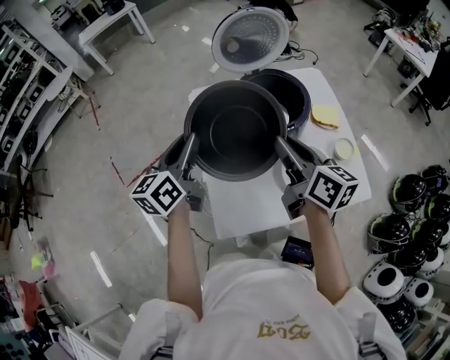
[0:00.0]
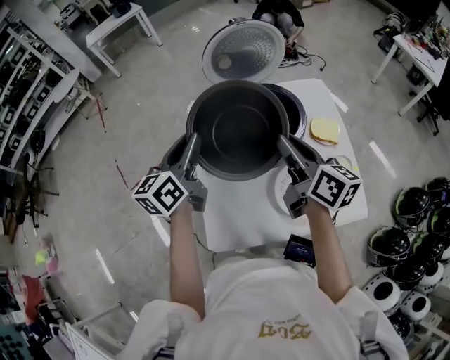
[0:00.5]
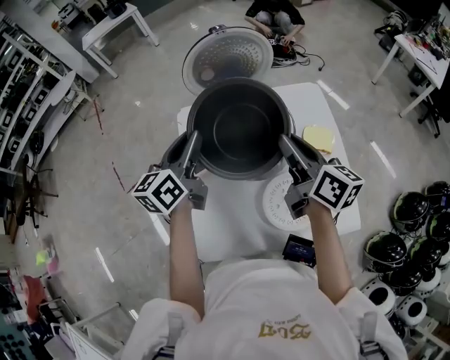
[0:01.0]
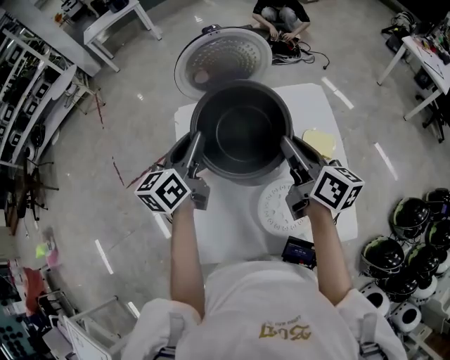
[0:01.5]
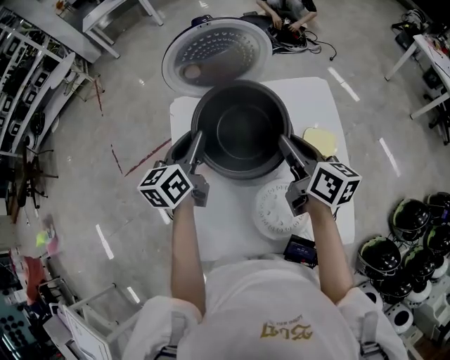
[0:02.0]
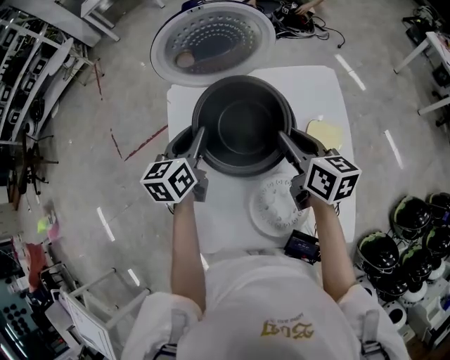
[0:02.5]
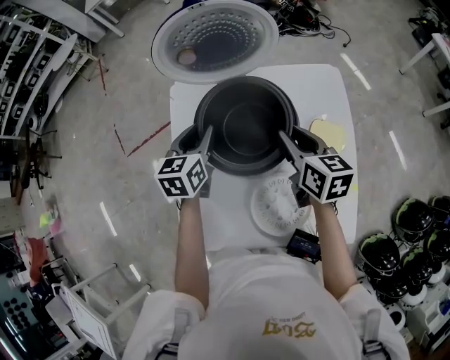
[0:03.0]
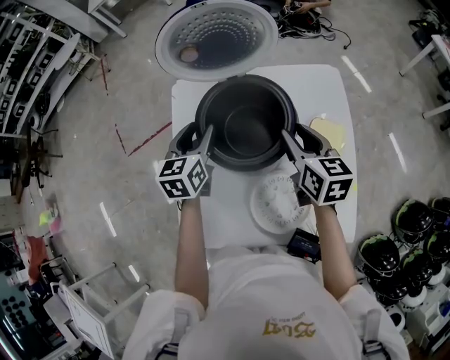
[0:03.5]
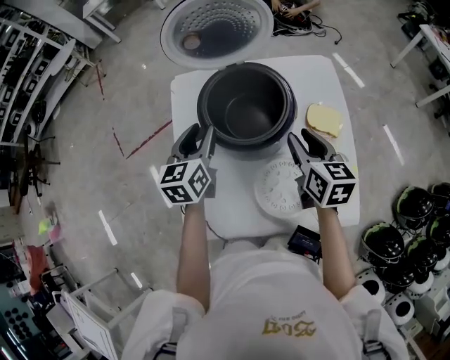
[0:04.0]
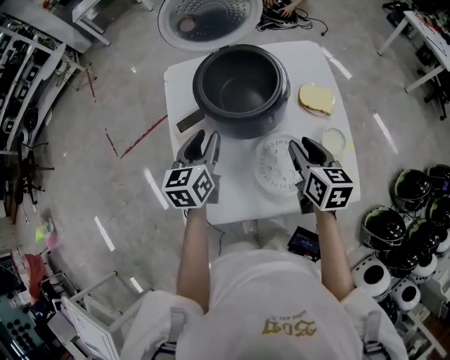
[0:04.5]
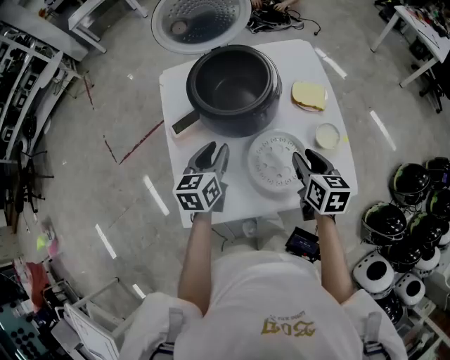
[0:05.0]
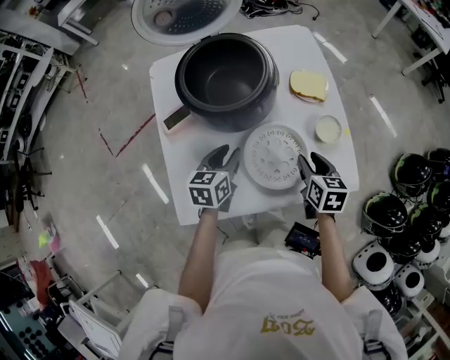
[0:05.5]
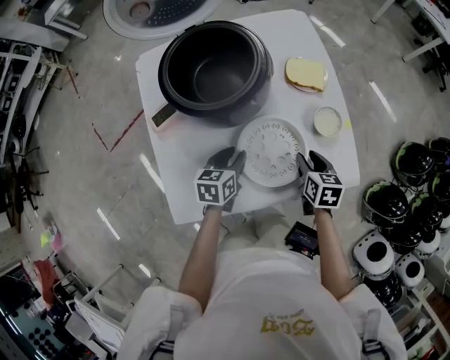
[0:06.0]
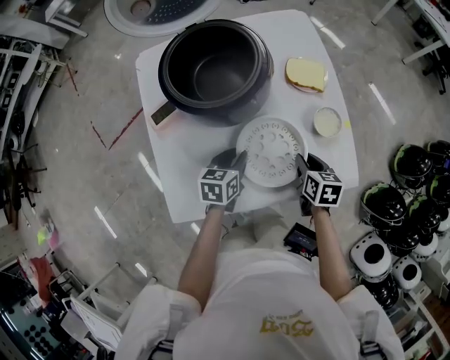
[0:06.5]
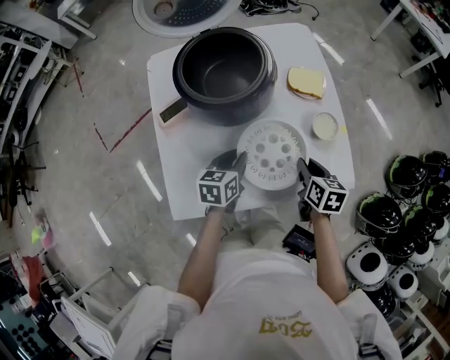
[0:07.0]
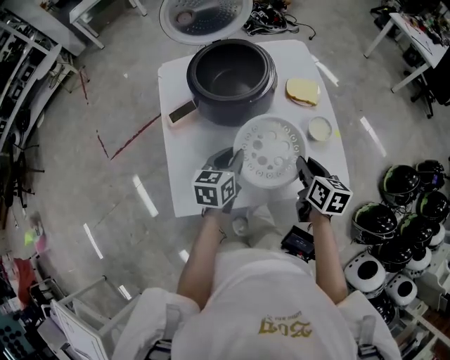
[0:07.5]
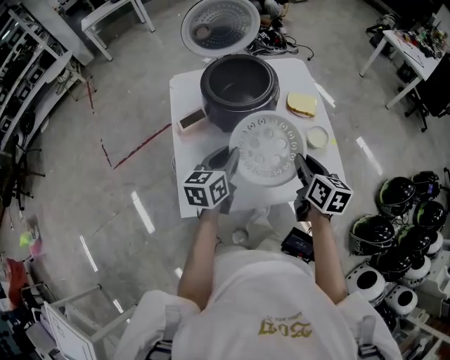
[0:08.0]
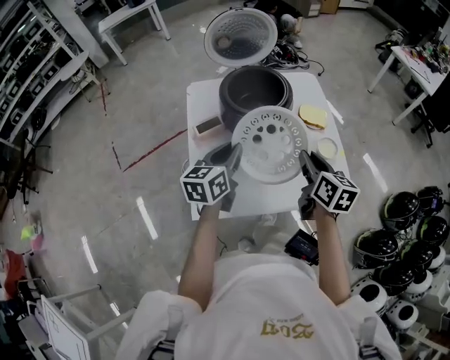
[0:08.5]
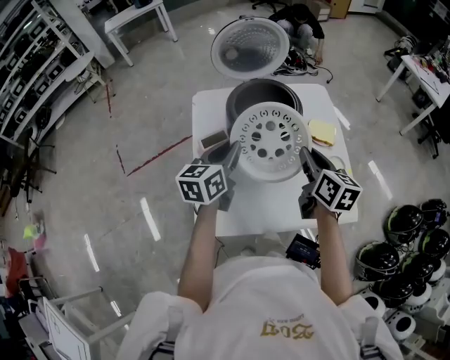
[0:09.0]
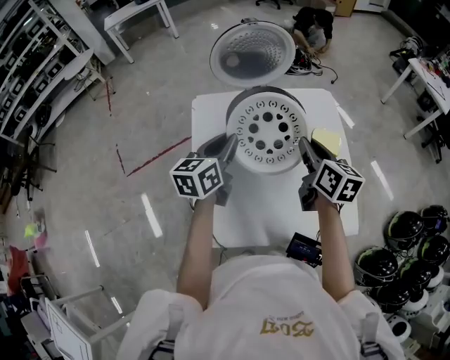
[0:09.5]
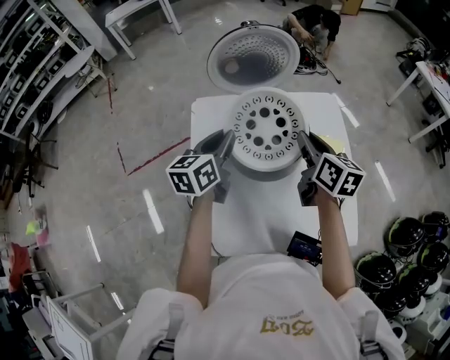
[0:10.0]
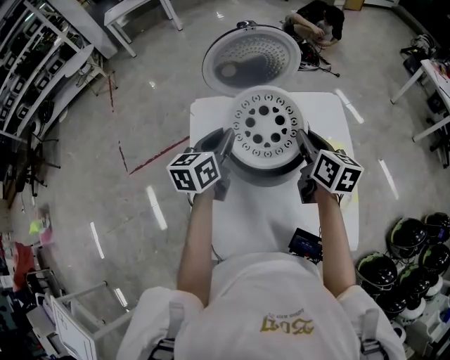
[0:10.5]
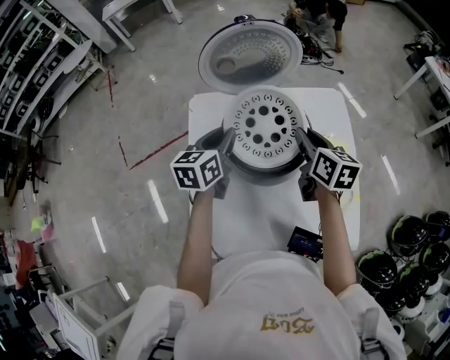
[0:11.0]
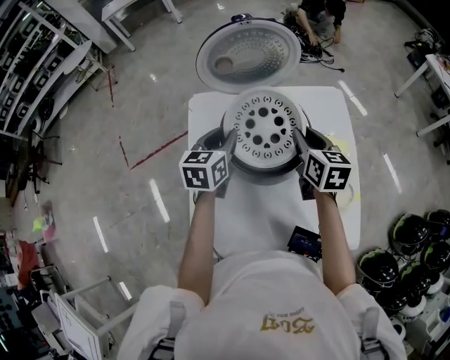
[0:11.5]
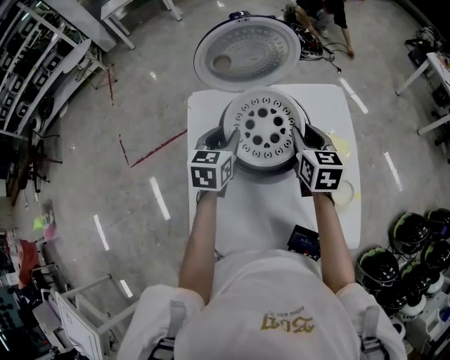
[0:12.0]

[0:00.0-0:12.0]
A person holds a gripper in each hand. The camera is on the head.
0:00.0 to 0:02.0: The right gripper moves forward and to the right, approximately 20 cm. The left gripper goes about 20 cm forward, to the right and downward.
0:02.0 to 0:04.0: The right gripper shifts about 10 cm backward and downward, and swivels about 20 degrees. Meanwhile the left gripper moves backward, about 5 cm.
0:04.0 to 0:06.0: Both grippers move downward, backward and to the right, approximately 25 cm. The left gripper swivels approximately 30 degrees. The right gripper rotates roughly 30 degrees.
0:06.0 to 0:08.0: Both grippers travel together upward, approximately 20 cm. The left gripper turns by some 20 degrees. Meanwhile the right gripper turns by some 20 degrees, and closes its fingers.
0:08.0 to 0:10.0: The left gripper heads forward and to the left, covering roughly 20 cm. Meanwhile the right gripper goes roughly 20 cm forward.
0:10.0 to 0:12.0: The right gripper shifts some 10 cm downward and forward, and swivels roughly 20 degrees. Meanwhile the left gripper moves downward, about 5 cm, and swivels some 20 degrees.

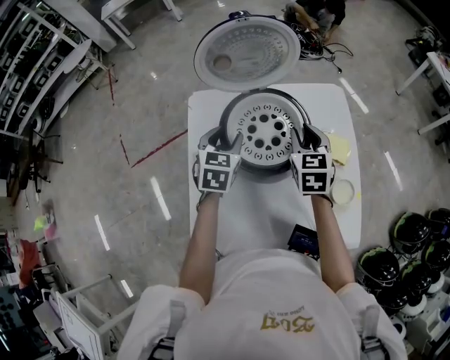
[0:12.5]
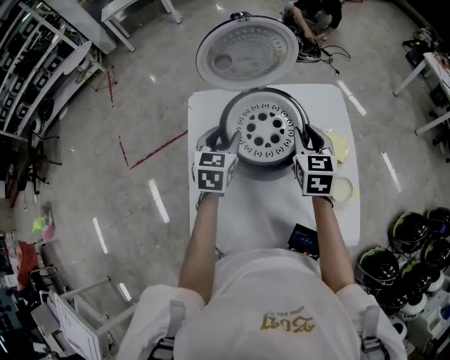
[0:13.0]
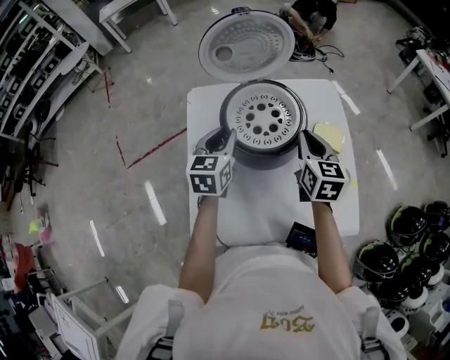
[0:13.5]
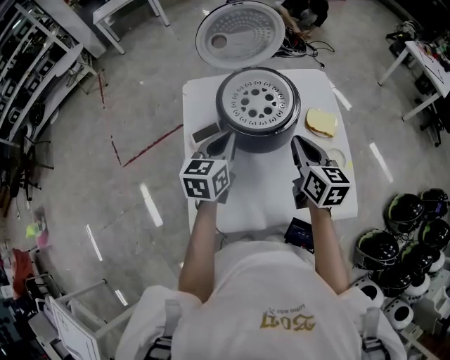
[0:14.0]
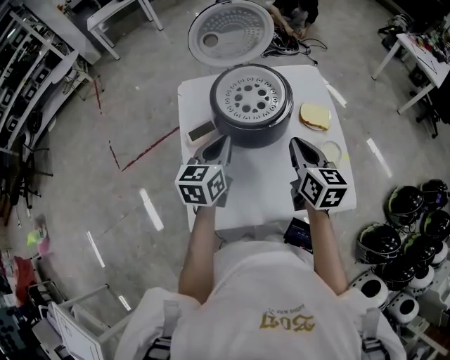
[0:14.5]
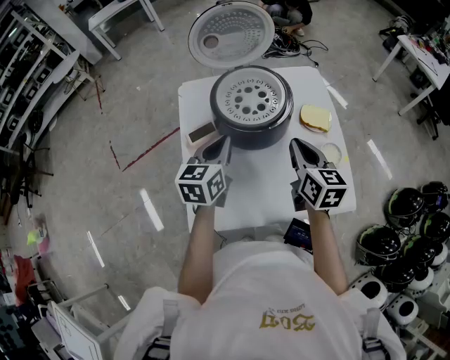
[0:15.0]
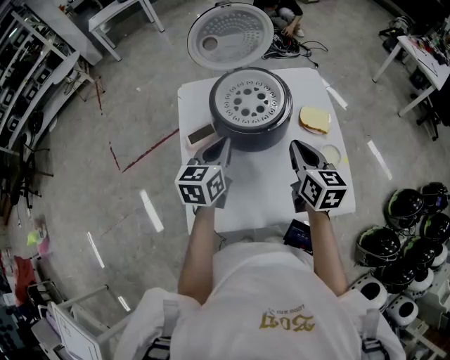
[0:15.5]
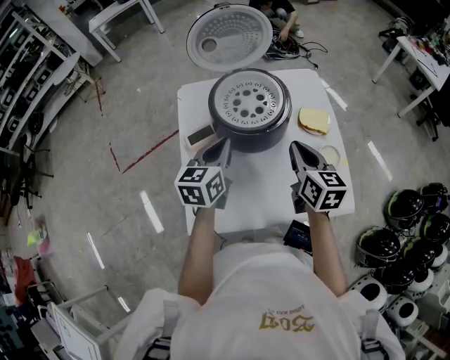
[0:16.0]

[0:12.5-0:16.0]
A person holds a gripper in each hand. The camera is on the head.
0:12.5 to 0:14.5: Both grippers travel together backward, about 15 cm. The left gripper turns by approximately 20 degrees, and closes its fingers, while the right gripper turns by about 30 degrees, and closes.
0:14.5 to 0:16.0: Both grippers stay about where they are.

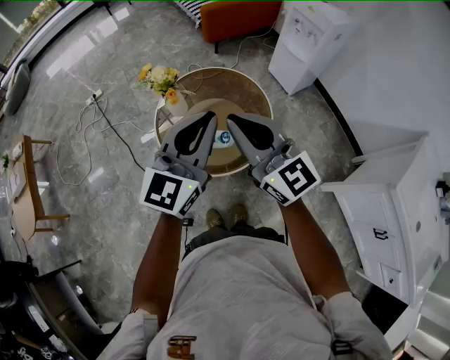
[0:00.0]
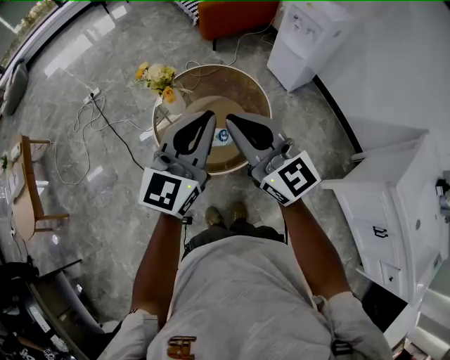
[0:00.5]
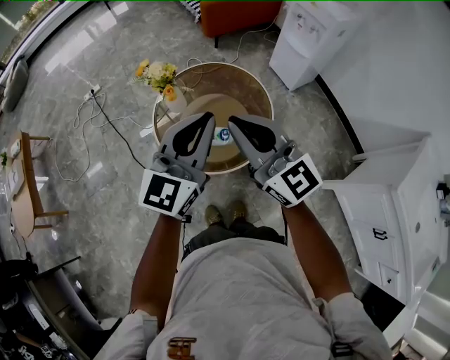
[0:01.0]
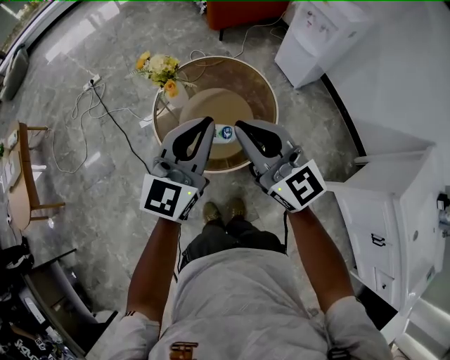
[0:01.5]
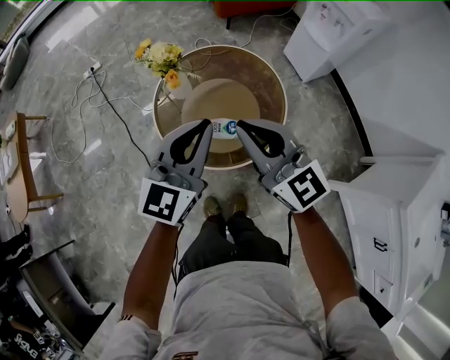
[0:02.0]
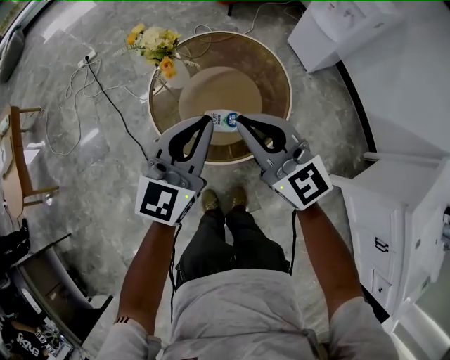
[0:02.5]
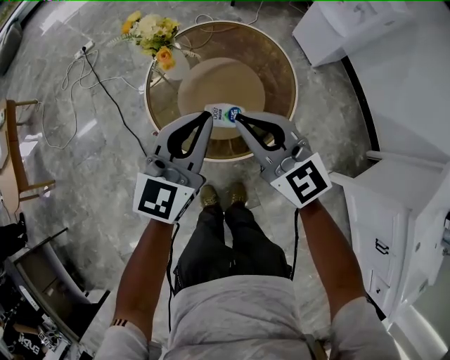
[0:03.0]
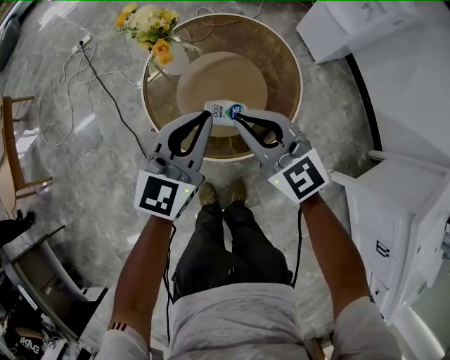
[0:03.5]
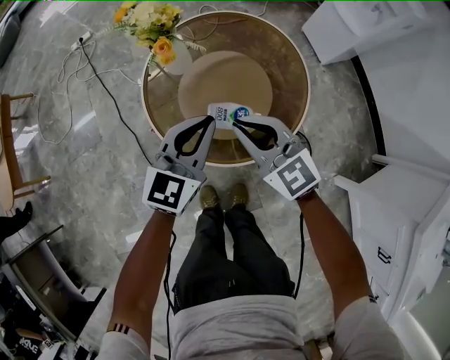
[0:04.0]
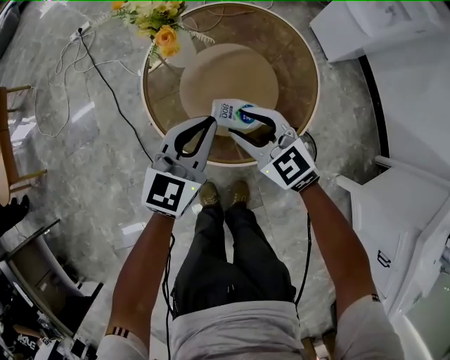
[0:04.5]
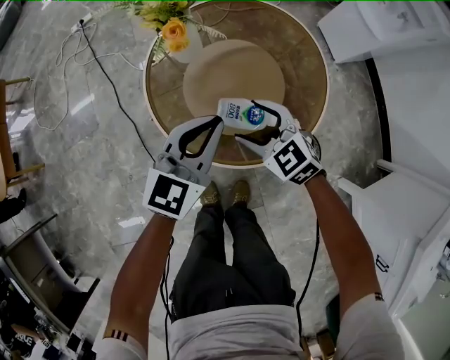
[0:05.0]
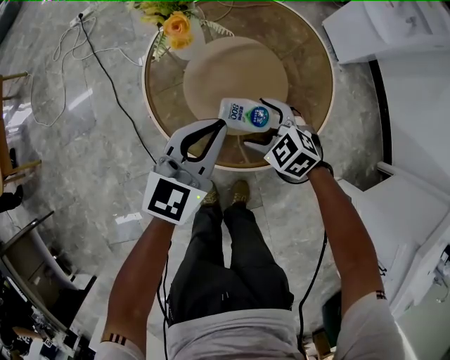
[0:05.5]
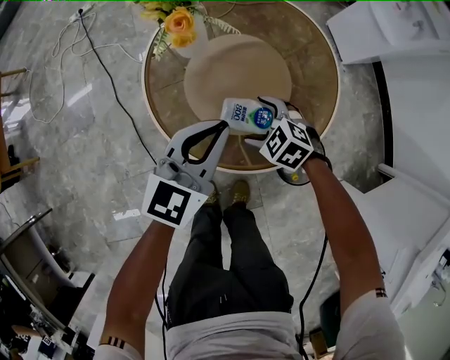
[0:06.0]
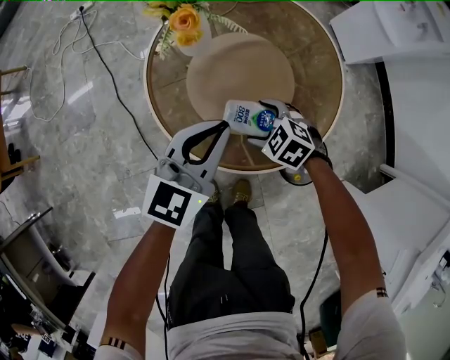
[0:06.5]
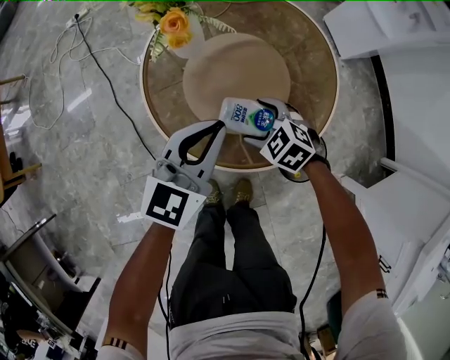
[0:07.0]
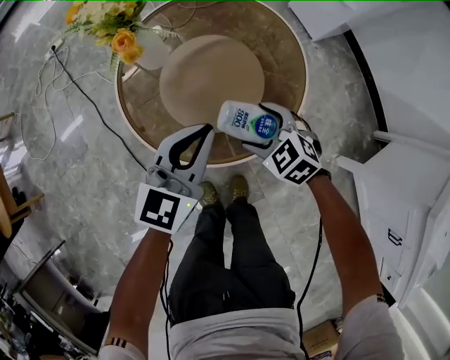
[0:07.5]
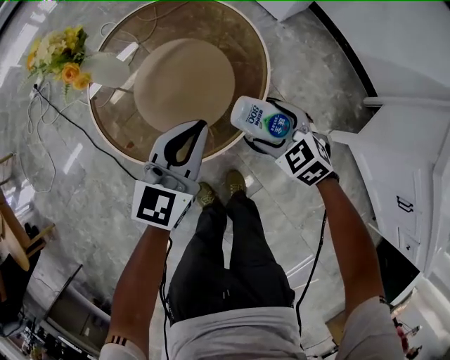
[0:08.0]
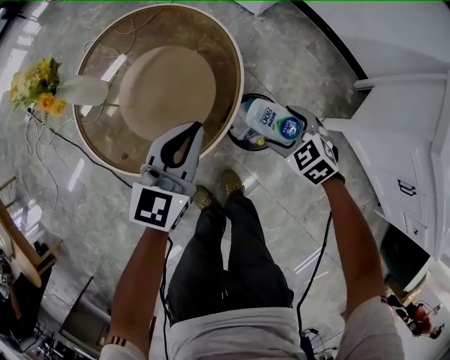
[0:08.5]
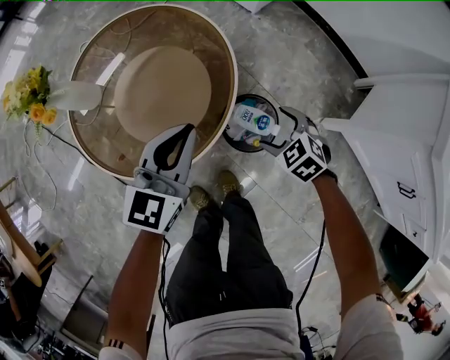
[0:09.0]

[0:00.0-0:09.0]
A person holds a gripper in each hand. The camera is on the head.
0:00.0 to 0:02.0: The two grippers go some 10 cm downward.
0:02.0 to 0:04.5: Both grippers travel together downward, some 25 cm. The right gripper swivels about 30 degrees, and opens its fingers.
0:04.5 to 0:07.0: The right gripper is displaced downward by roughly 15 cm, tilts its fingers some 30 degrees downward, and opens up.
0:07.0 to 0:09.0: The right gripper moves roughly 10 cm upward and comes back, and rotates some 40 degrees. Meanwhile the left gripper shifts by some 20 cm.

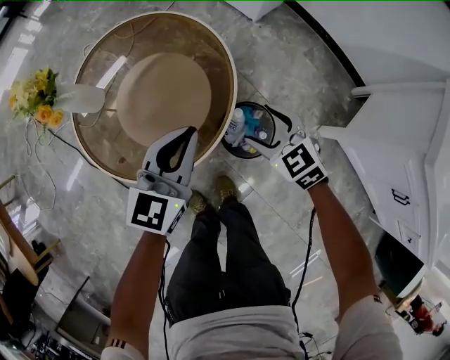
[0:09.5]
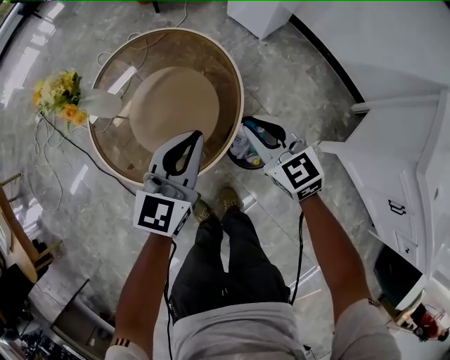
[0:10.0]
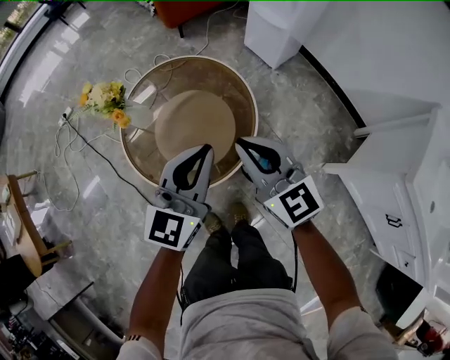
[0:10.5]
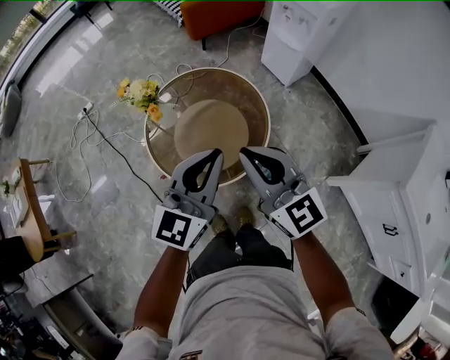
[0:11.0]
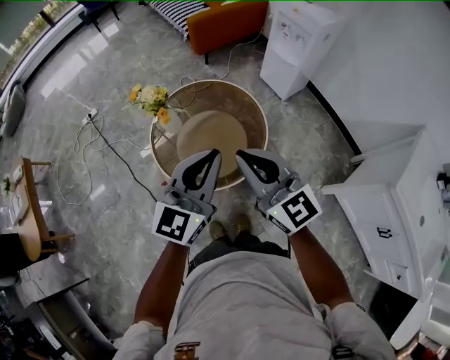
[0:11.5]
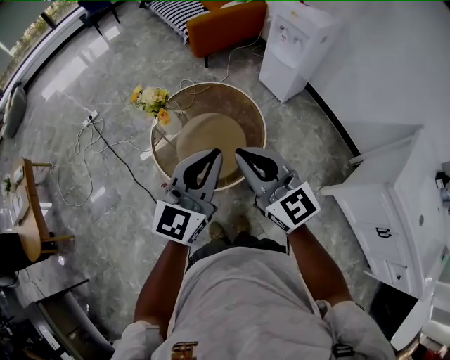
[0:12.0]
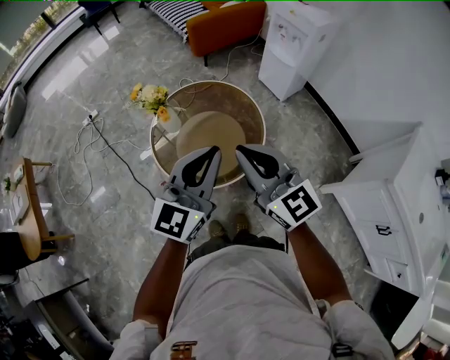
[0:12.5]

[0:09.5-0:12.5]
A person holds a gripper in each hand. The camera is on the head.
0:09.5 to 0:11.0: The left gripper is displaced upward by some 25 cm; the right gripper moves upward and to the left, some 40 cm, angles its fingers upward, by some 40 degrees, and closes up.
0:11.0 to 0:12.5: The two grippers go roughly 5 cm upward.
